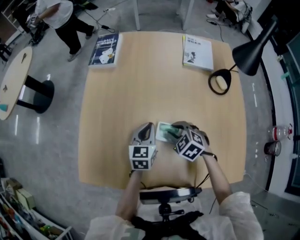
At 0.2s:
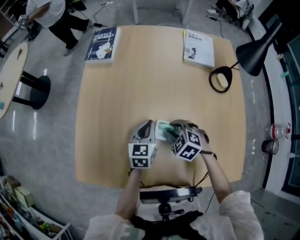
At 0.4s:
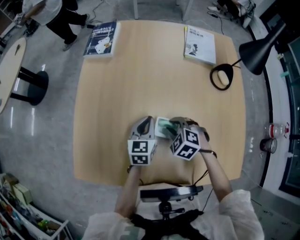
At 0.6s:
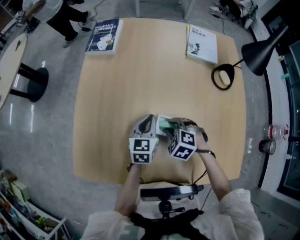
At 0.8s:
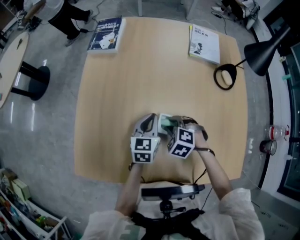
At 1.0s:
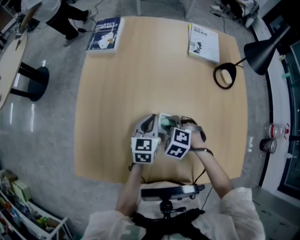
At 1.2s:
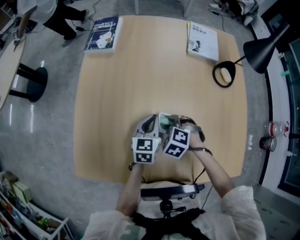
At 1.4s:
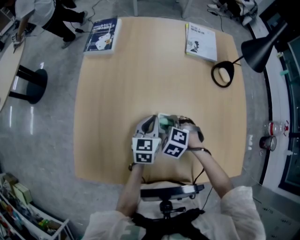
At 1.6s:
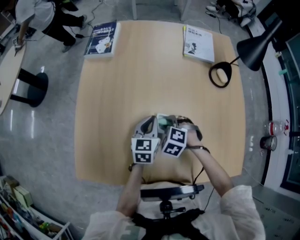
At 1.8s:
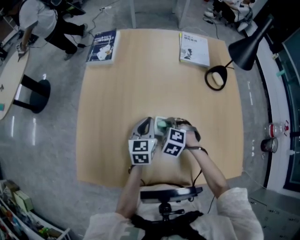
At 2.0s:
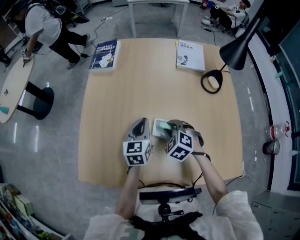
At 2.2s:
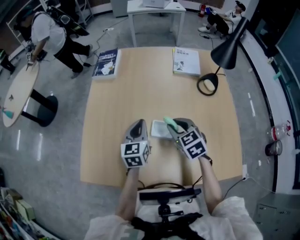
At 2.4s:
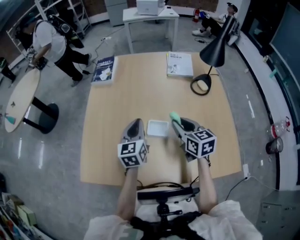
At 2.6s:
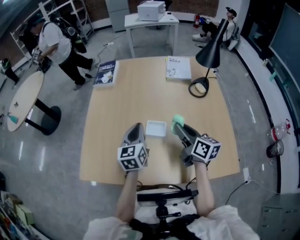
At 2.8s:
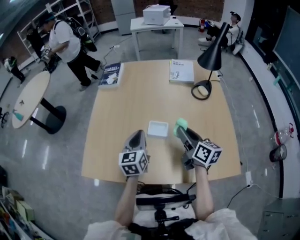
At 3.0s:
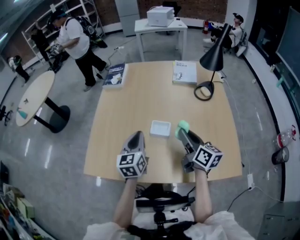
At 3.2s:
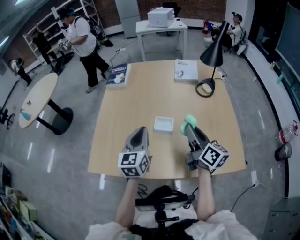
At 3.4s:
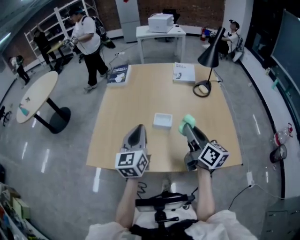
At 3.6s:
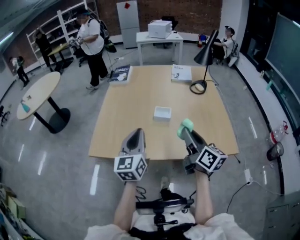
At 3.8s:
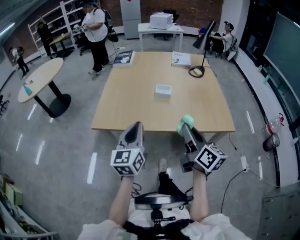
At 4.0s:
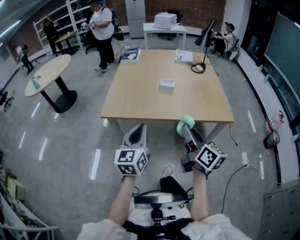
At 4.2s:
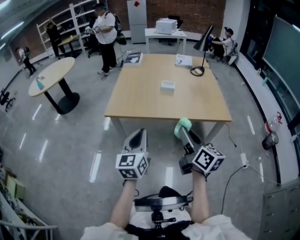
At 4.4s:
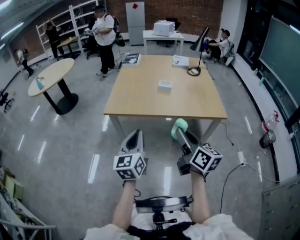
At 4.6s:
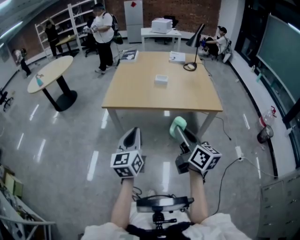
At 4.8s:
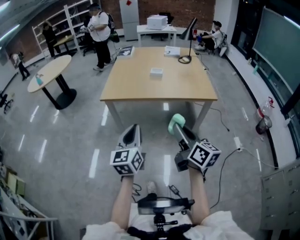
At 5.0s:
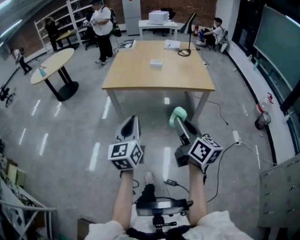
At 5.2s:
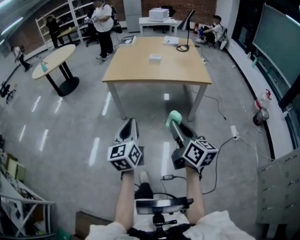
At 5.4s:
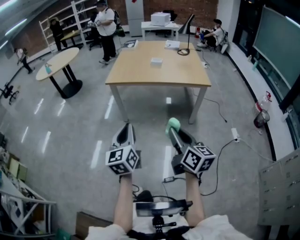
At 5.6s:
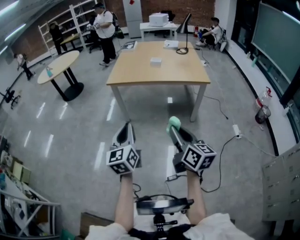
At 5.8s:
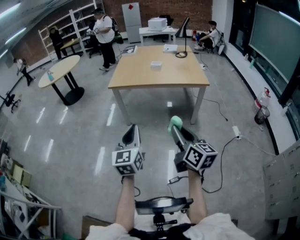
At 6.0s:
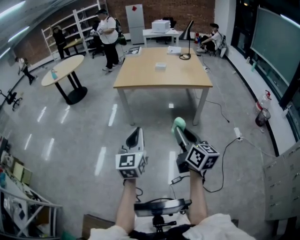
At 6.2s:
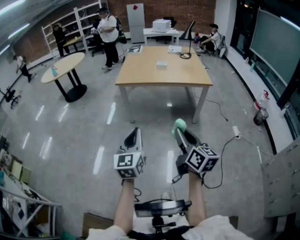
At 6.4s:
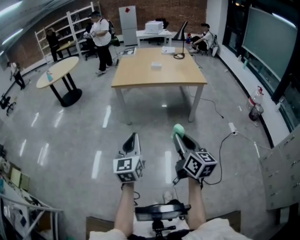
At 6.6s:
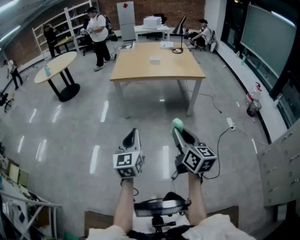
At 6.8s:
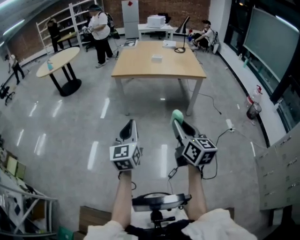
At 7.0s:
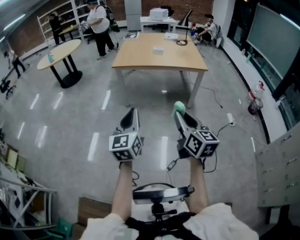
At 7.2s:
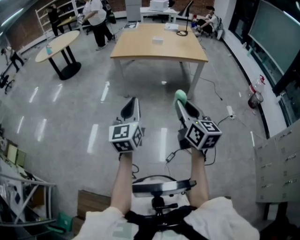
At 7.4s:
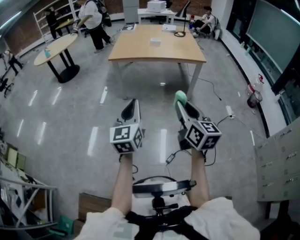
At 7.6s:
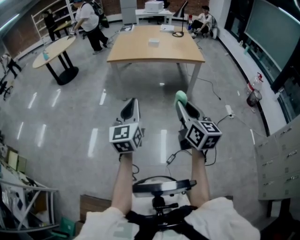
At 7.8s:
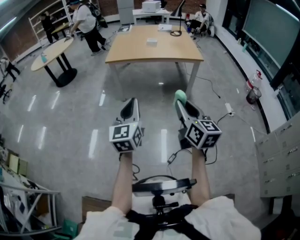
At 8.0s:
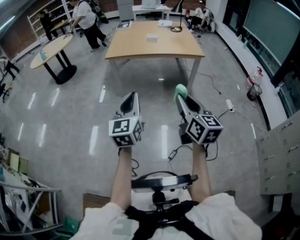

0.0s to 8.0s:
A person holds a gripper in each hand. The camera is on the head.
0.0s to 1.6s: The right gripper turns by some 20 degrees.
1.6s to 3.2s: The left gripper goes roughly 25 cm upward and backward, and turns by some 20 degrees. Meanwhile the right gripper travels upward, backward and to the right by roughly 30 cm, and angles its fingers upward, by about 70 degrees.
3.2s to 4.8s: The two grippers travel together, backward, approximately 70 cm.
4.8s to 6.4s: The two grippers go approximately 35 cm backward.
6.4s to 8.0s: The left gripper moves roughly 5 cm, while the right gripper ends up about 5 cm from where it was.

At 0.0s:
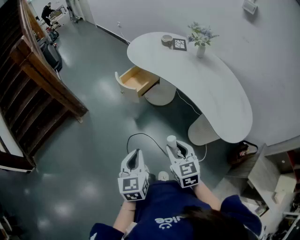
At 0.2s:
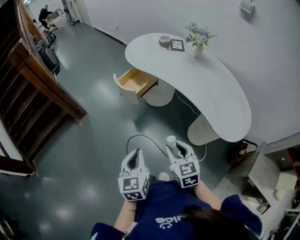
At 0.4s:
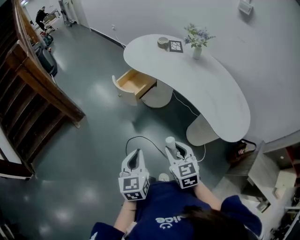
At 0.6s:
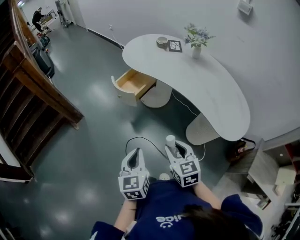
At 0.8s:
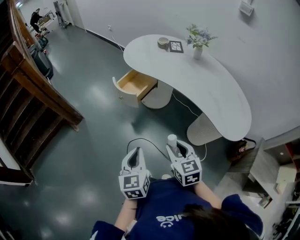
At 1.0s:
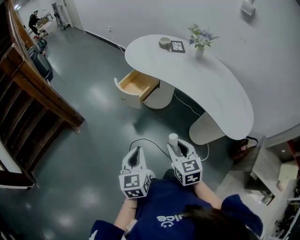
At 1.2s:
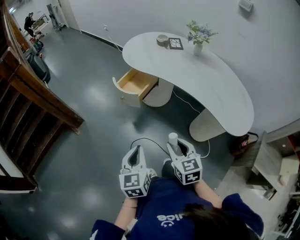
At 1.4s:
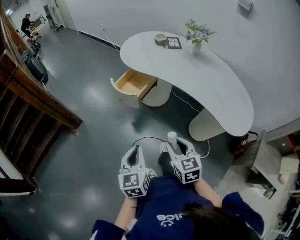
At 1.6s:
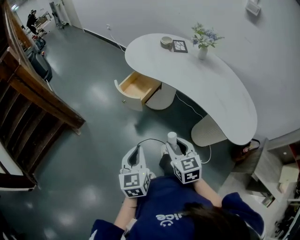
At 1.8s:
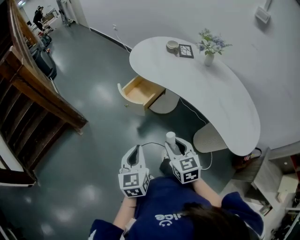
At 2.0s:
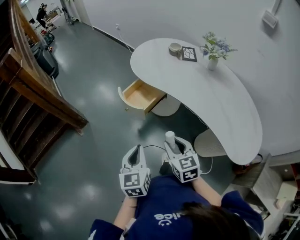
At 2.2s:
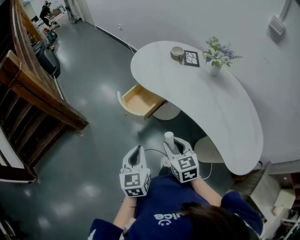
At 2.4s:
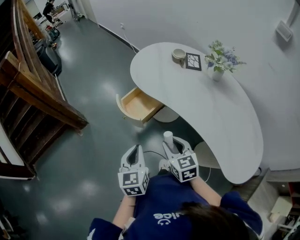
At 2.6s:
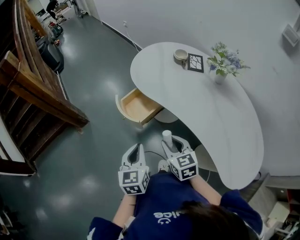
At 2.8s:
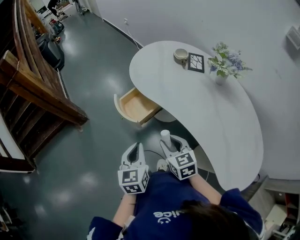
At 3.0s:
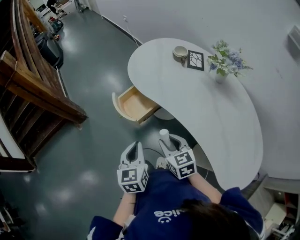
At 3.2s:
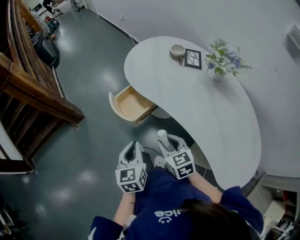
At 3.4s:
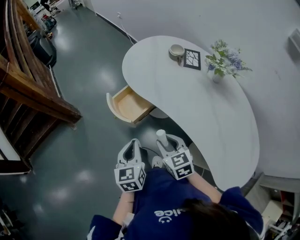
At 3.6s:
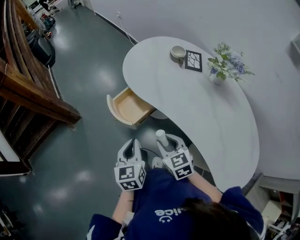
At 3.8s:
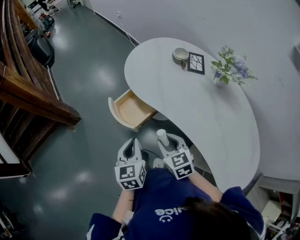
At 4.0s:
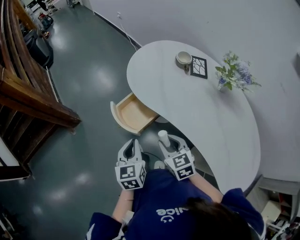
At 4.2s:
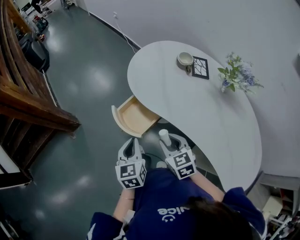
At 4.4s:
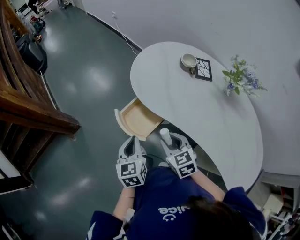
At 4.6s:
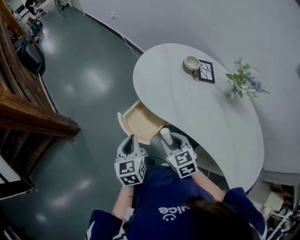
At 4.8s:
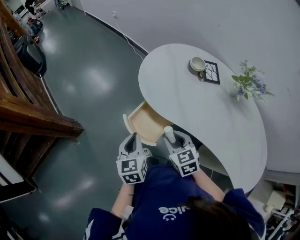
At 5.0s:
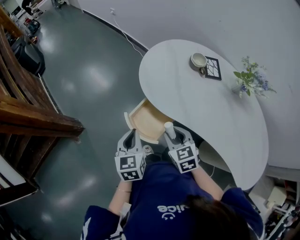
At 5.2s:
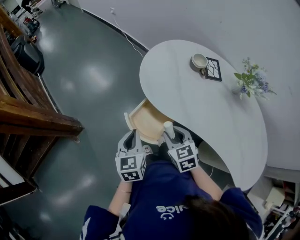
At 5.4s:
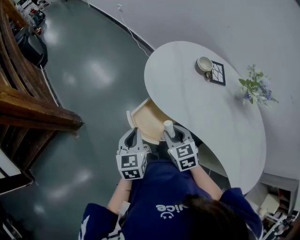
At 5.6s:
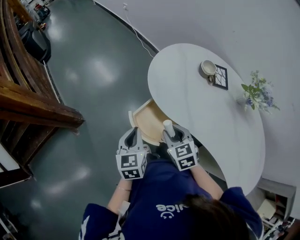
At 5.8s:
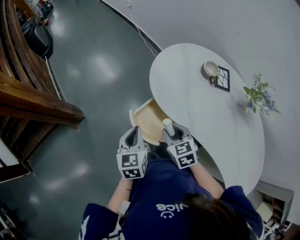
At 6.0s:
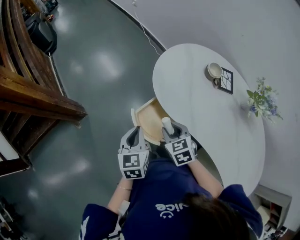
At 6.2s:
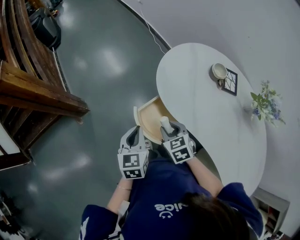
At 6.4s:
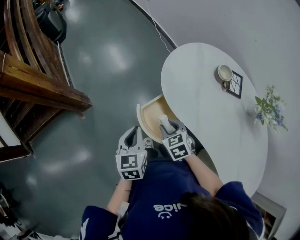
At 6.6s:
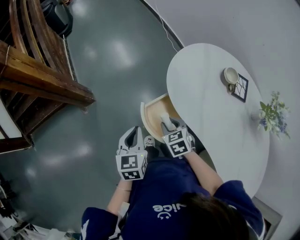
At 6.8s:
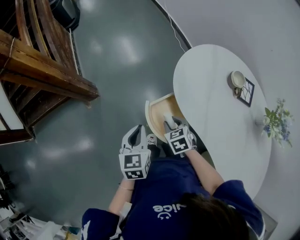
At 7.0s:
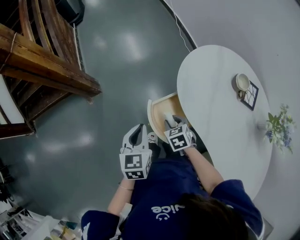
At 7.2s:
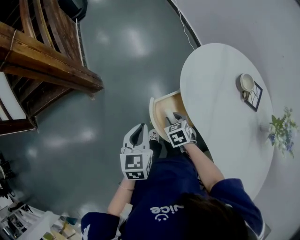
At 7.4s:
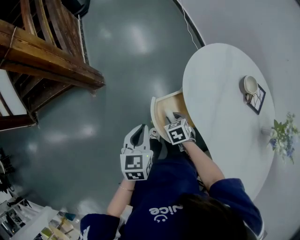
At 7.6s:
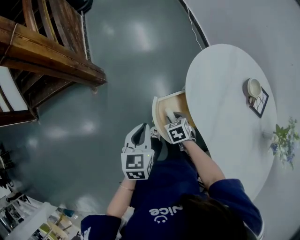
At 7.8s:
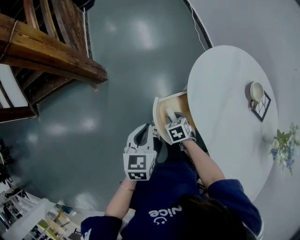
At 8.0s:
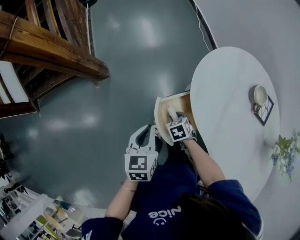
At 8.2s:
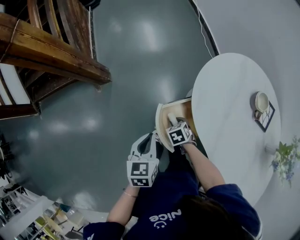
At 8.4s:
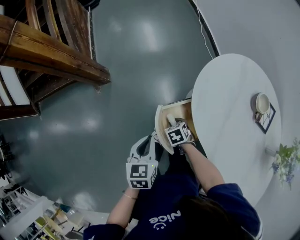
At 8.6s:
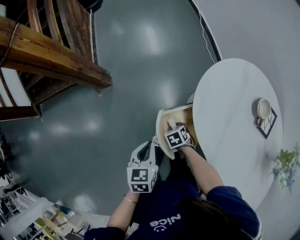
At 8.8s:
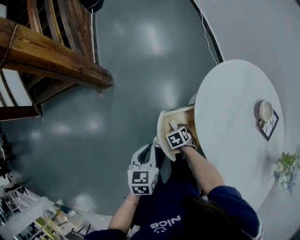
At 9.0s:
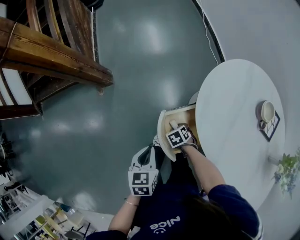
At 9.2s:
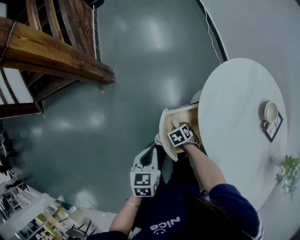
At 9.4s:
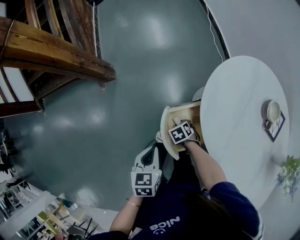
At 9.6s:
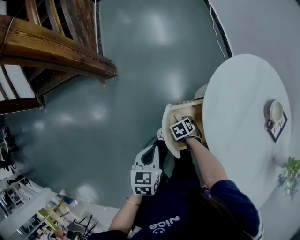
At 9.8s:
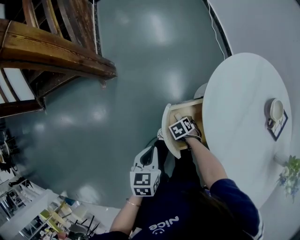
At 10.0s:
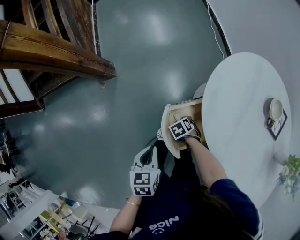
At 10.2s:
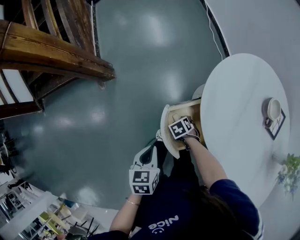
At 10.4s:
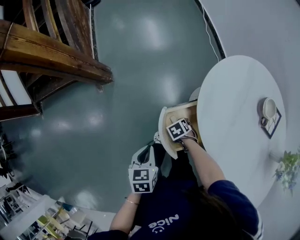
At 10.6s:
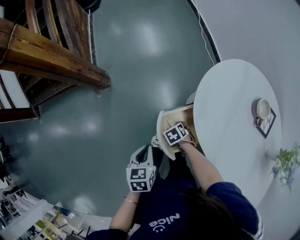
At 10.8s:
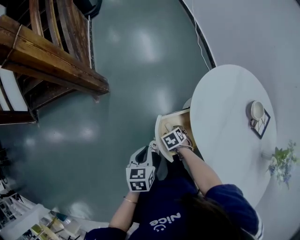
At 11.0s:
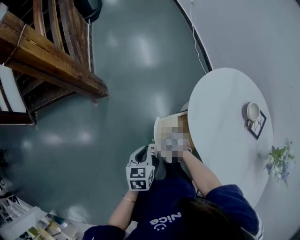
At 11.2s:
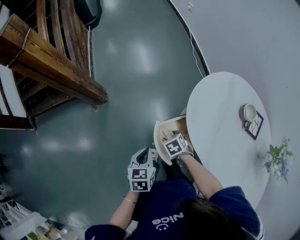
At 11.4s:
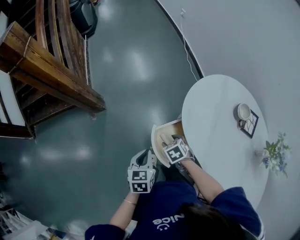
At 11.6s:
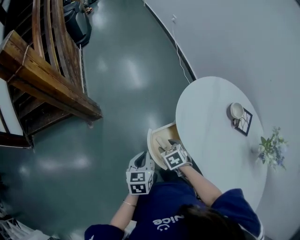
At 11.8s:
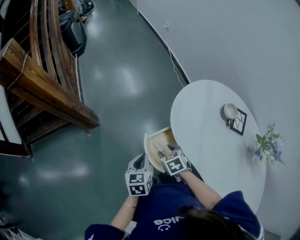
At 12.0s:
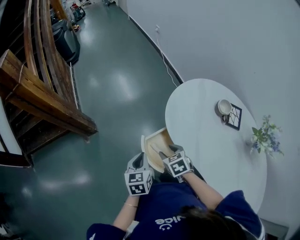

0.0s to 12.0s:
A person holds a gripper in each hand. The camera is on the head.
0.0s to 1.6s: Both grippers move forward and to the left, about 10 cm.
1.6s to 3.0s: The left gripper heads forward and to the right, covering about 20 cm. The right gripper travels forward by roughly 20 cm.
3.0s to 4.4s: Both grippers move forward, some 15 cm.
4.4s to 6.0s: Both grippers travel together forward and to the left, approximately 10 cm.
6.0s to 7.6s: The right gripper shifts about 15 cm downward, and rotates about 20 degrees.
7.6s to 9.0s: Both grippers travel together downward, about 10 cm.
9.0s to 10.4s: The right gripper opens its fingers.
10.4s to 12.0s: The left gripper is displaced upward by about 10 cm, while the right gripper travels upward by about 25 cm, and changes its angle by roughly 30 degrees.

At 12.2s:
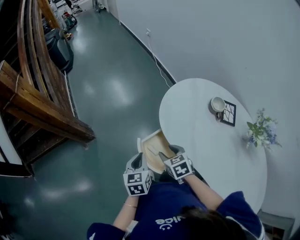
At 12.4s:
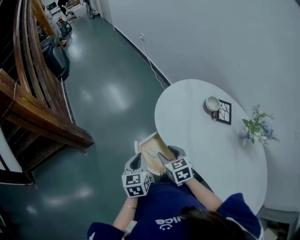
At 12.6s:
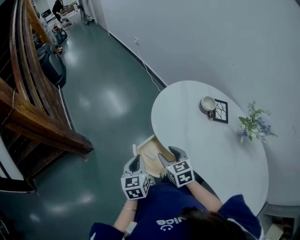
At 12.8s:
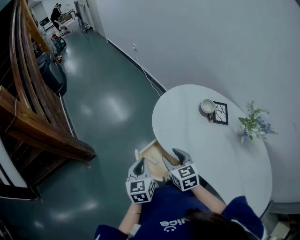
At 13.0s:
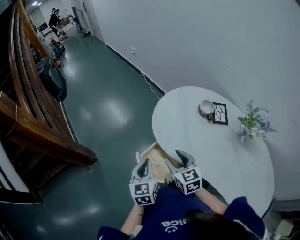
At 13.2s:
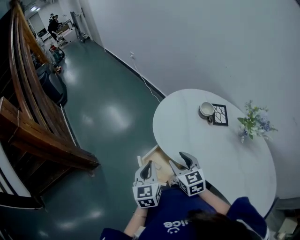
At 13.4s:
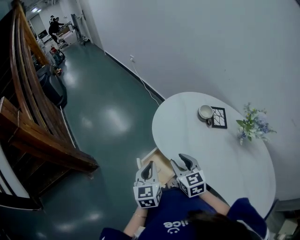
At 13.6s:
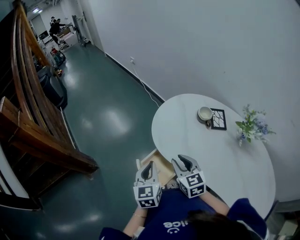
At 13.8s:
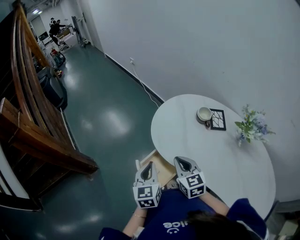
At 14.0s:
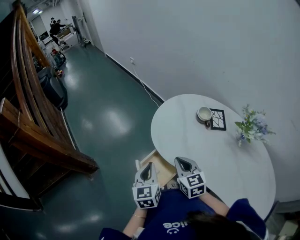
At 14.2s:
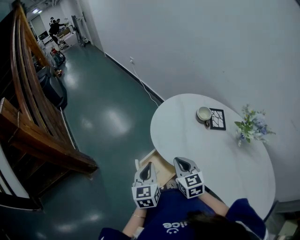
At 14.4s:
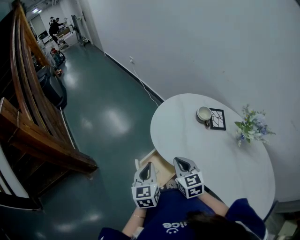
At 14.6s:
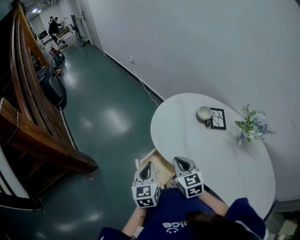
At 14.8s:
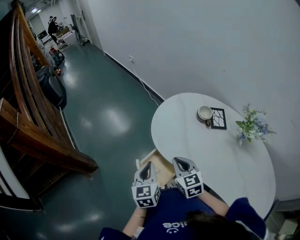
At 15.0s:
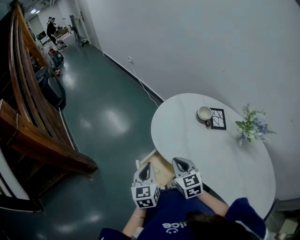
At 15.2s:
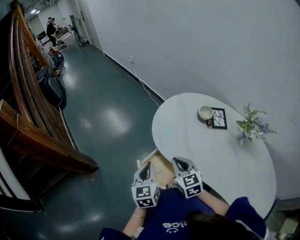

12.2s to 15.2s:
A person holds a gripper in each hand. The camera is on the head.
12.2s to 13.8s: Both grippers travel together upward and to the right, roughly 10 cm. The right gripper turns by some 30 degrees, and closes up.
13.8s to 15.2s: The grippers move only a little.

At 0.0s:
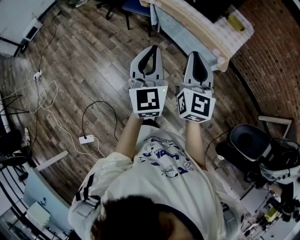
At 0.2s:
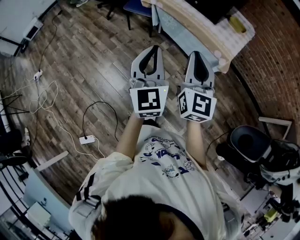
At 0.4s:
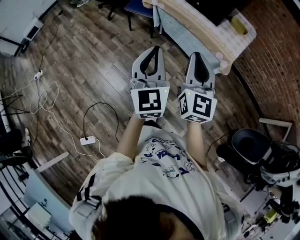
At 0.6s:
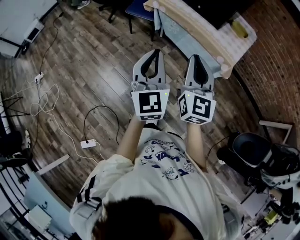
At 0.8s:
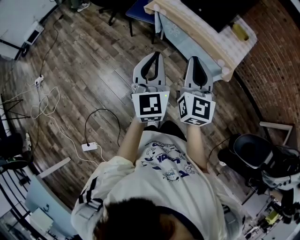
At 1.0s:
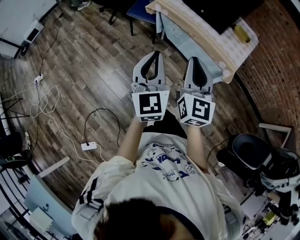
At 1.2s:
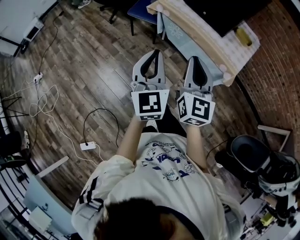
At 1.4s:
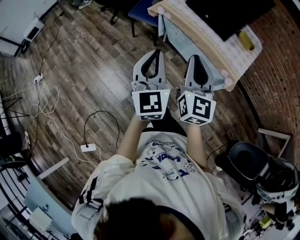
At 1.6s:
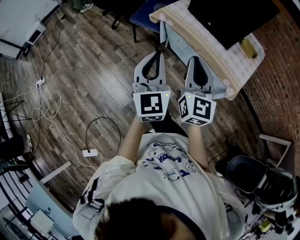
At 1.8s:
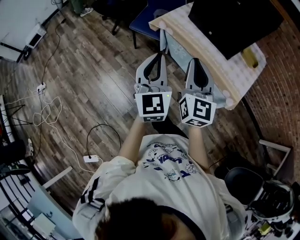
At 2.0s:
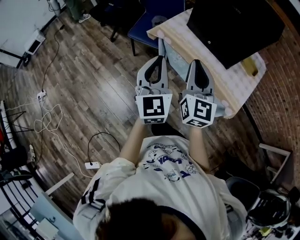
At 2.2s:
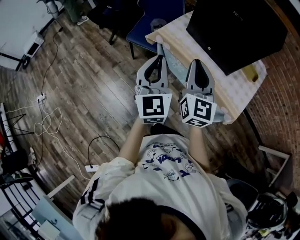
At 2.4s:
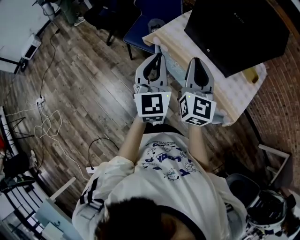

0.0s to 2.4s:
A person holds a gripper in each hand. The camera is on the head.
0.0s to 1.2s: The two grippers go some 10 cm forward and to the left.
1.2s to 2.4s: Both grippers travel together forward, approximately 30 cm.
